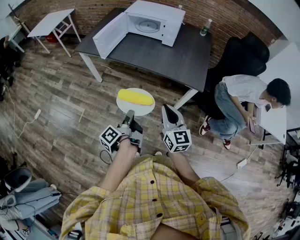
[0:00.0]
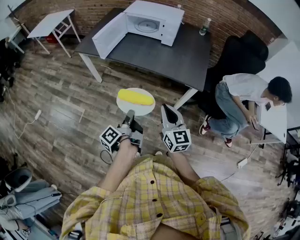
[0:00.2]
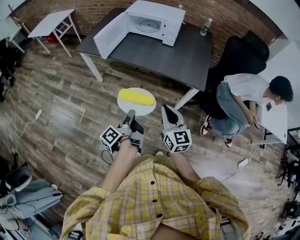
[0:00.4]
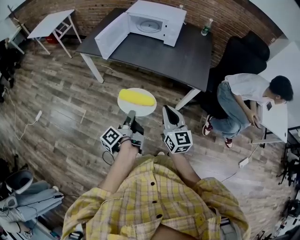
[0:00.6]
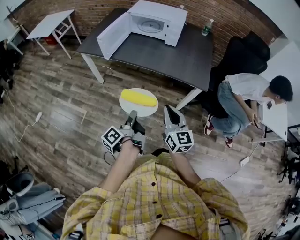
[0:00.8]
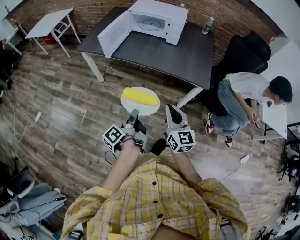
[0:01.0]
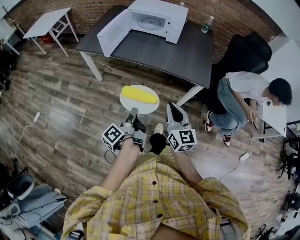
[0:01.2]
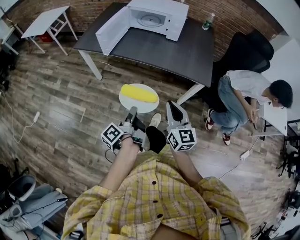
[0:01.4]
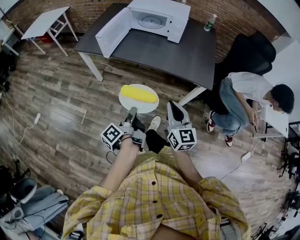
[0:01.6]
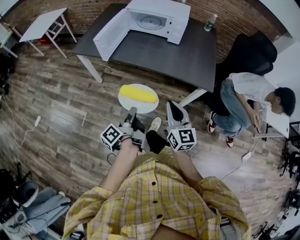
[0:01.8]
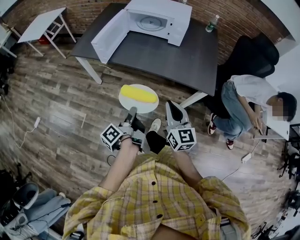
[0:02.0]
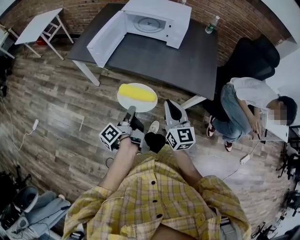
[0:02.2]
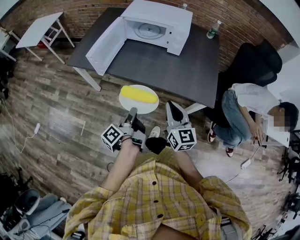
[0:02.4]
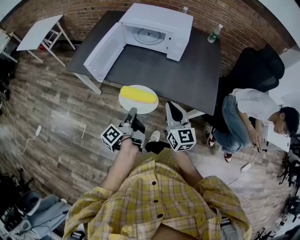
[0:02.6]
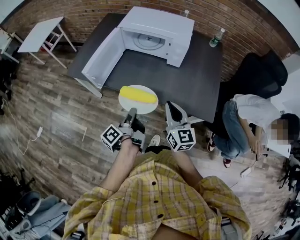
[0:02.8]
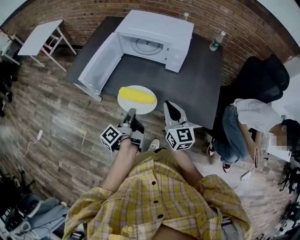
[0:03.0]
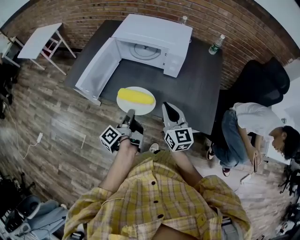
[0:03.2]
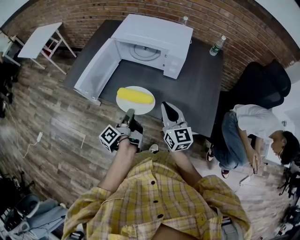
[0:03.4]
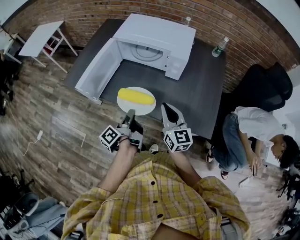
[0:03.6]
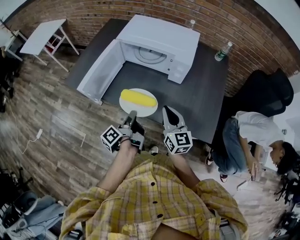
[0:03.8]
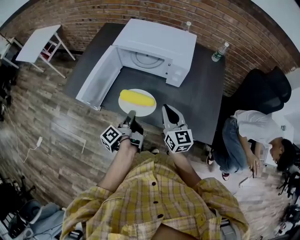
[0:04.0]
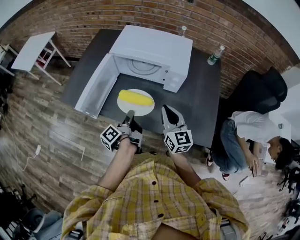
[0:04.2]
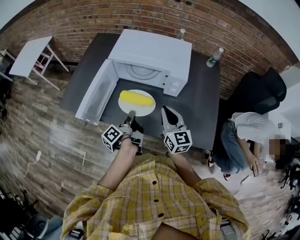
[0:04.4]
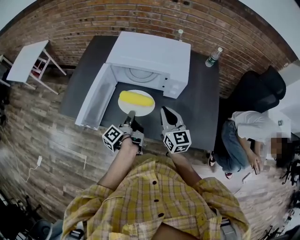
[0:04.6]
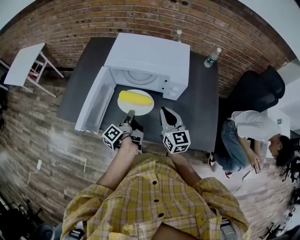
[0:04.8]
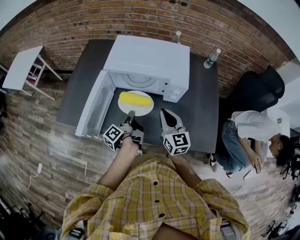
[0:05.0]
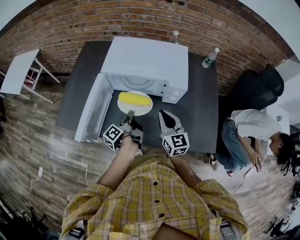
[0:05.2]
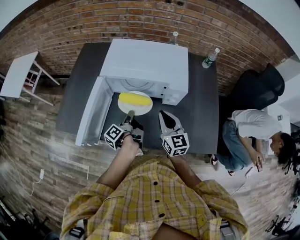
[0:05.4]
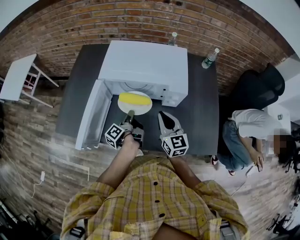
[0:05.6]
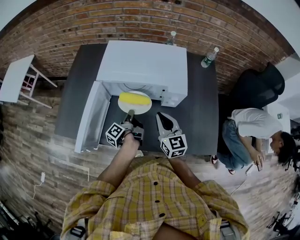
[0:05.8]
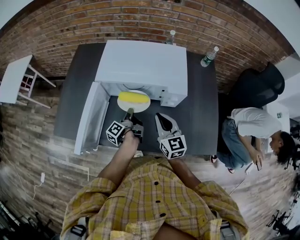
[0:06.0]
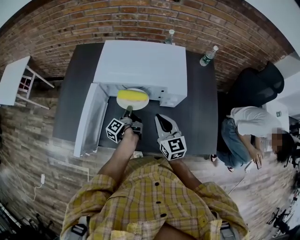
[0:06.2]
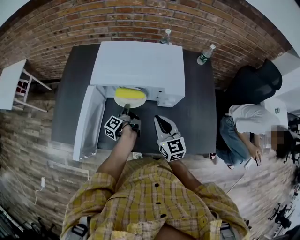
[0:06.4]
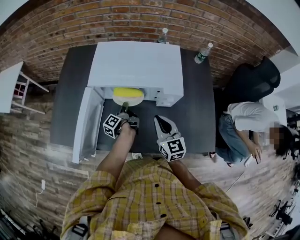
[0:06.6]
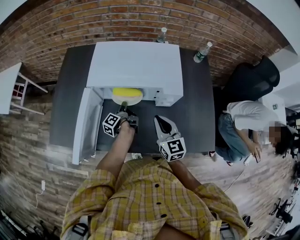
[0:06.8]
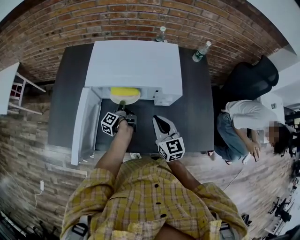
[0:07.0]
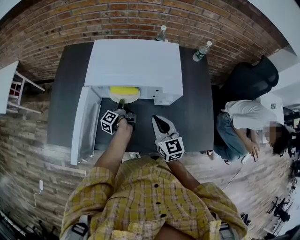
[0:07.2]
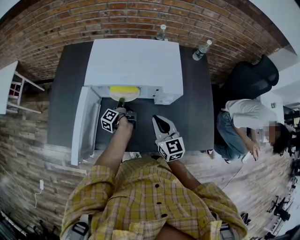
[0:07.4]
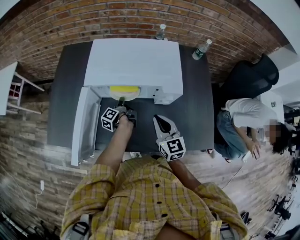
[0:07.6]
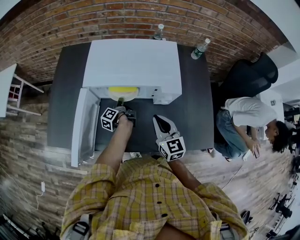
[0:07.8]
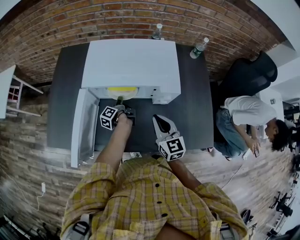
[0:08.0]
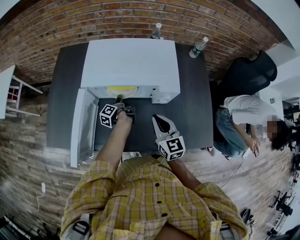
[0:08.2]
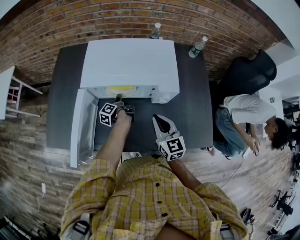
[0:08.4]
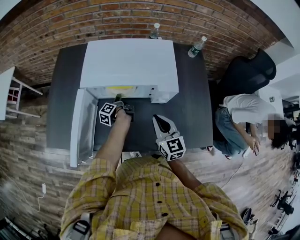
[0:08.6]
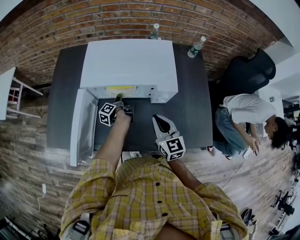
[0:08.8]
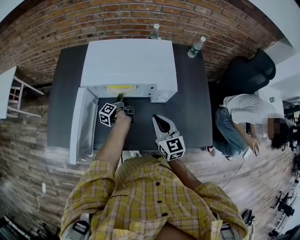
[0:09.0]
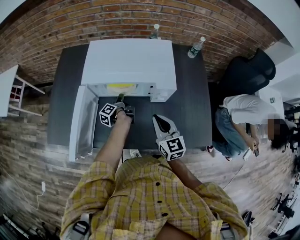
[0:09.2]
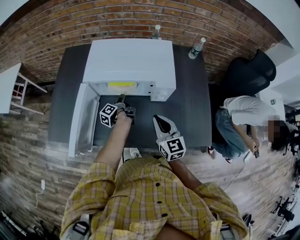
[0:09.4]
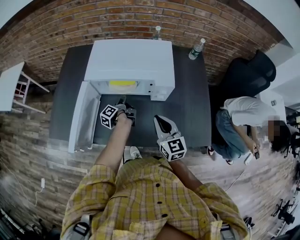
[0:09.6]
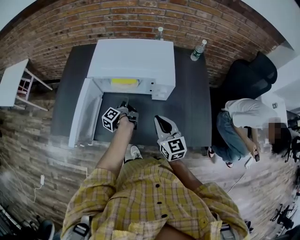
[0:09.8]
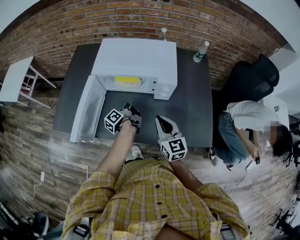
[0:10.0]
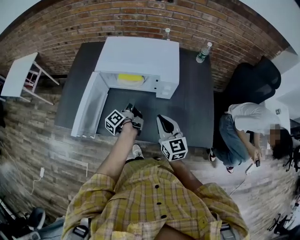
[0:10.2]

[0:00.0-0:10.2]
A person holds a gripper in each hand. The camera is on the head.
0.0 to 1.4 s: The right gripper shifts by approximately 5 cm.
1.4 to 3.0 s: The right gripper moves about 30 cm.
3.0 to 4.4 s: The right gripper ends up some 15 cm from where it was.
4.4 to 5.8 s: The right gripper changes place by roughly 10 cm.
8.8 to 10.2 s: The right gripper ends up approximately 10 cm from where it was.

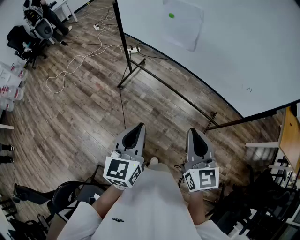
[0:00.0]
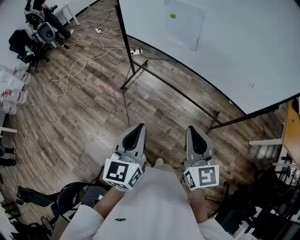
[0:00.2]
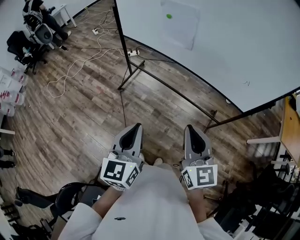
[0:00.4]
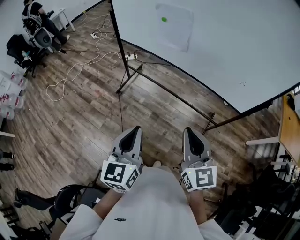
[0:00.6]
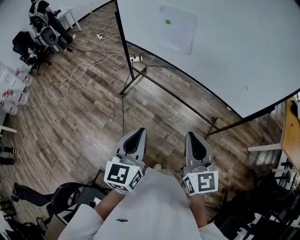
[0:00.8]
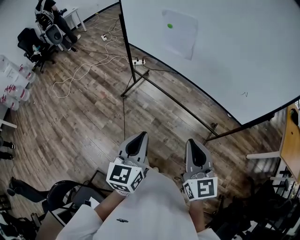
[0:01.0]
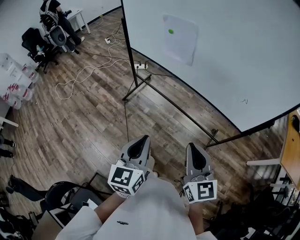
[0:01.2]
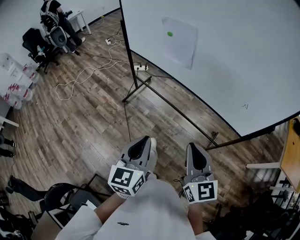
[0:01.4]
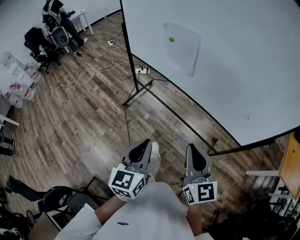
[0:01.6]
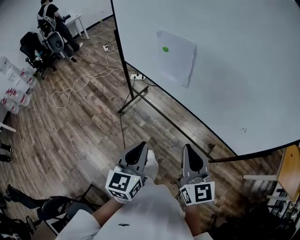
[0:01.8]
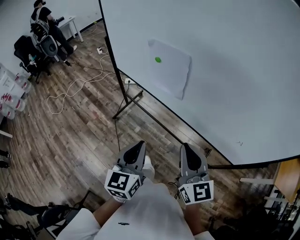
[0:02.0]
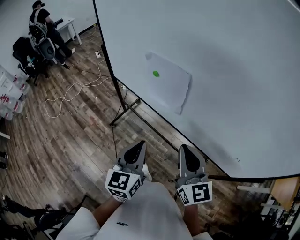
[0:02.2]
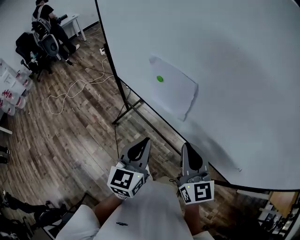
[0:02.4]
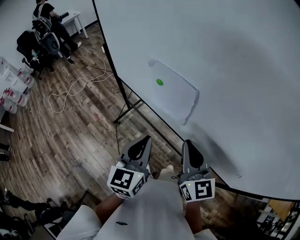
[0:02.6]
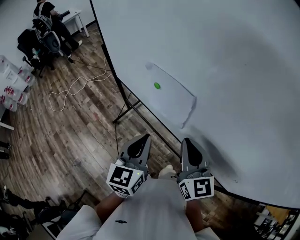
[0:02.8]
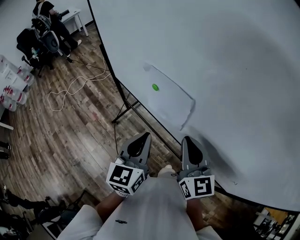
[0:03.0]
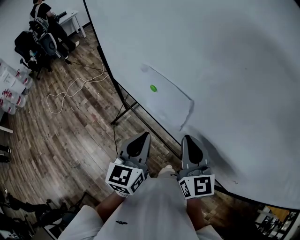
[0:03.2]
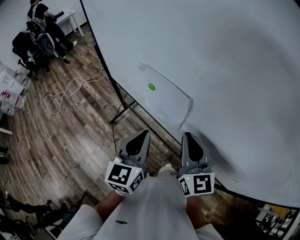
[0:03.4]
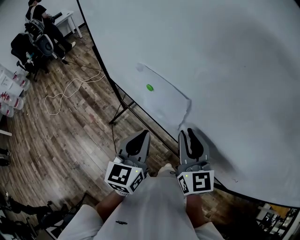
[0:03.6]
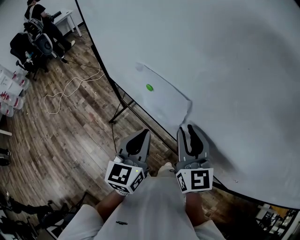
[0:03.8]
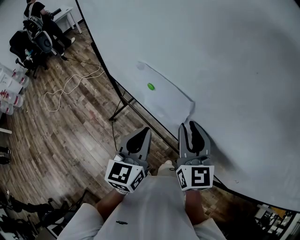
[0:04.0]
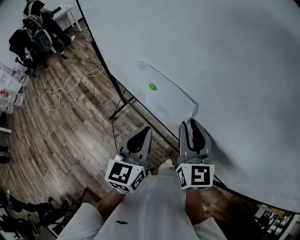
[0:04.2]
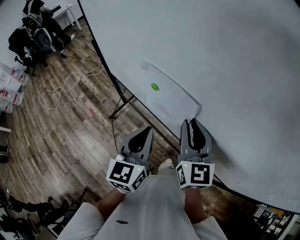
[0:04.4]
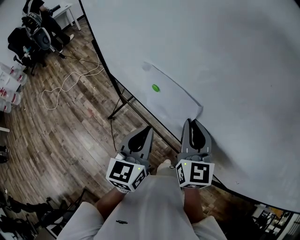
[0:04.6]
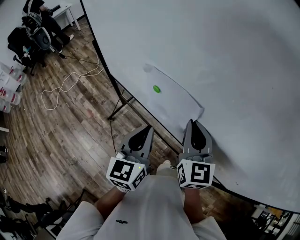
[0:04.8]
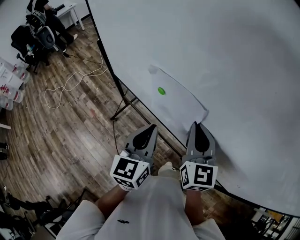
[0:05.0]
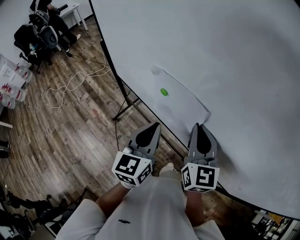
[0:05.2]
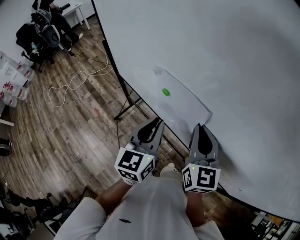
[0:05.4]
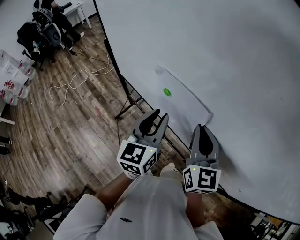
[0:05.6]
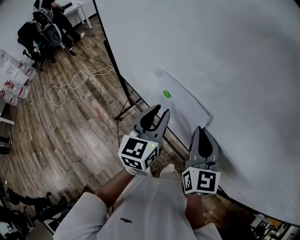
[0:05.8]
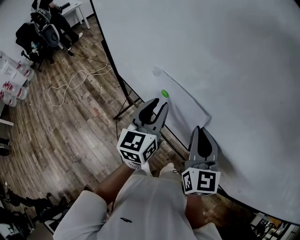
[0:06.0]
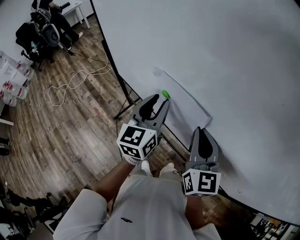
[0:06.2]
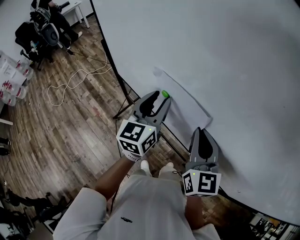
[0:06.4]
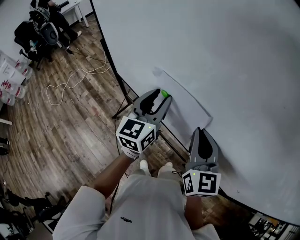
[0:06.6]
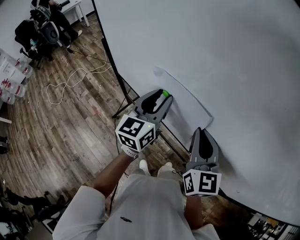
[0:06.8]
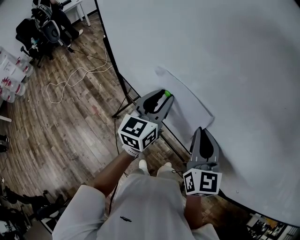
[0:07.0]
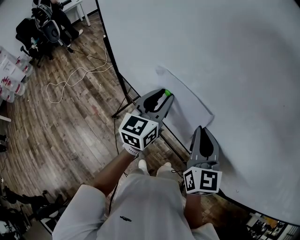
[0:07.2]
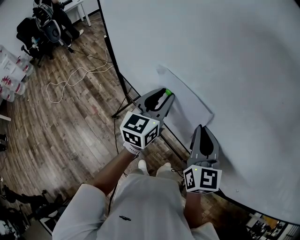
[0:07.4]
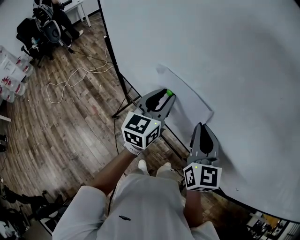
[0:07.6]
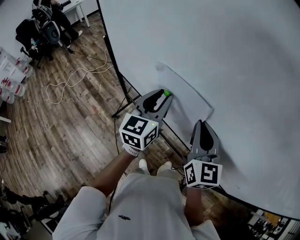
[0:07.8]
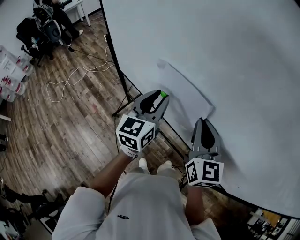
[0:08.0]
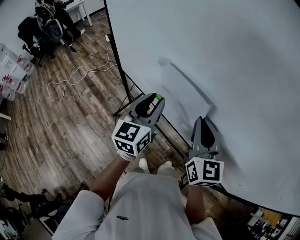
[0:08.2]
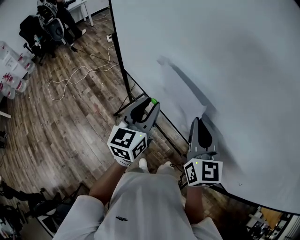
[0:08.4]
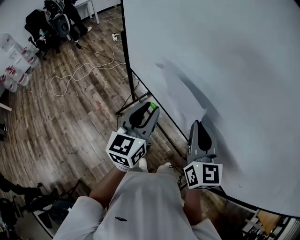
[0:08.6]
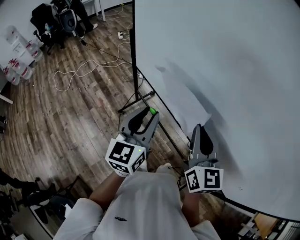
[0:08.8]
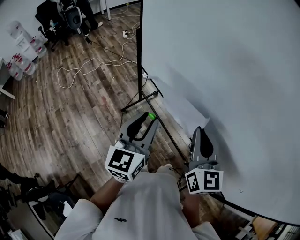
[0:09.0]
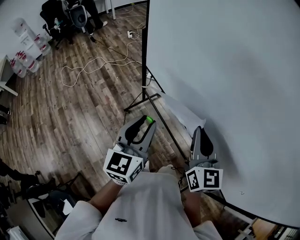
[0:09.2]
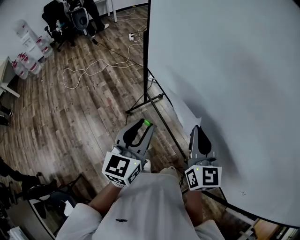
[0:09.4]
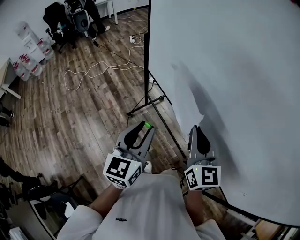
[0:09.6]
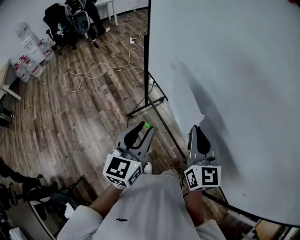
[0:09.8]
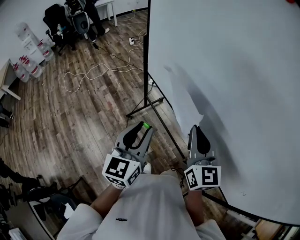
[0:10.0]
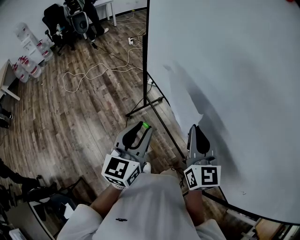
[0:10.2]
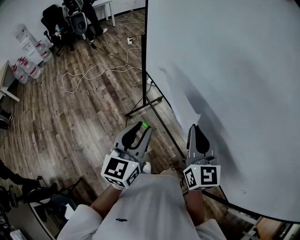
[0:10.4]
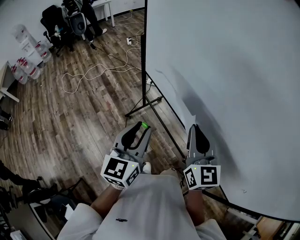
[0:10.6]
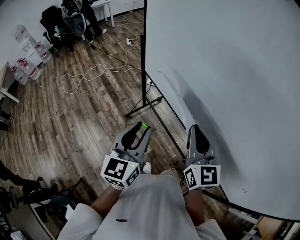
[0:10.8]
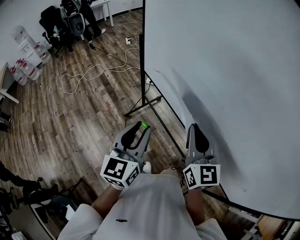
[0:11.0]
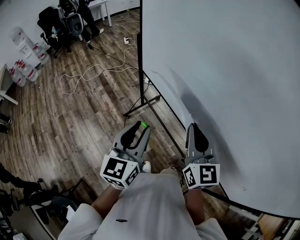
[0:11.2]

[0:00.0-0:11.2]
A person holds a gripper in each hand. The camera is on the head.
0.0 to 1.6 s: Both grippers move to the right, about 5 cm.
1.6 to 3.2 s: Both grippers move forward, about 35 cm.
3.2 to 4.8 s: The right gripper goes roughly 5 cm forward.
4.8 to 6.4 s: The left gripper shifts about 10 cm forward, and opens its fingers.
6.4 to 8.0 s: There are only small adjustments of the grippers.
8.0 to 9.6 s: The left gripper heads backward and to the left, covering some 20 cm. The right gripper is displaced to the left and backward by about 10 cm.
9.6 to 11.2 s: There are only small adjustments of the grippers.

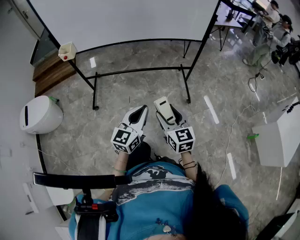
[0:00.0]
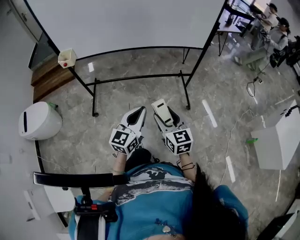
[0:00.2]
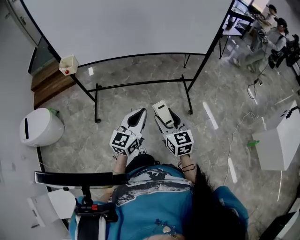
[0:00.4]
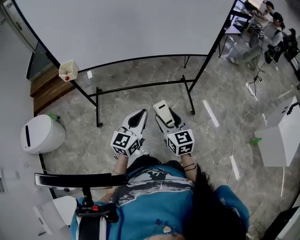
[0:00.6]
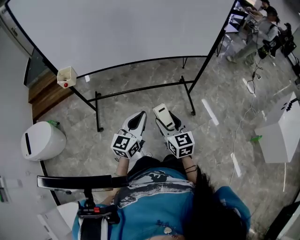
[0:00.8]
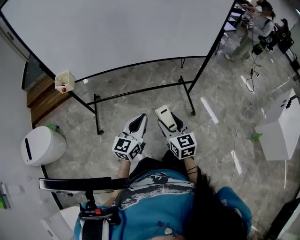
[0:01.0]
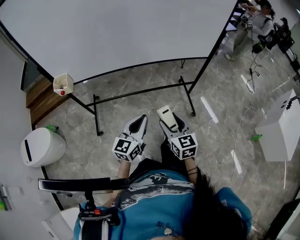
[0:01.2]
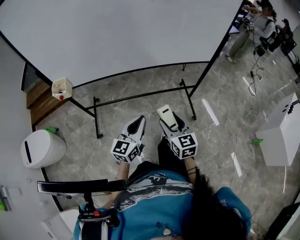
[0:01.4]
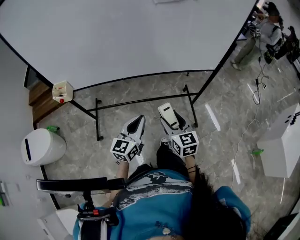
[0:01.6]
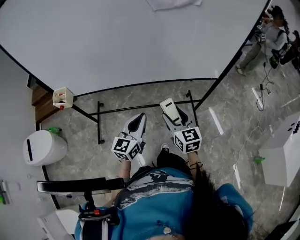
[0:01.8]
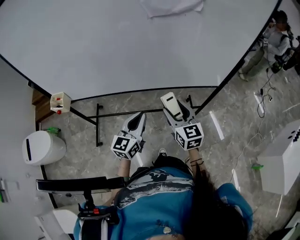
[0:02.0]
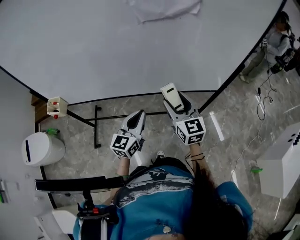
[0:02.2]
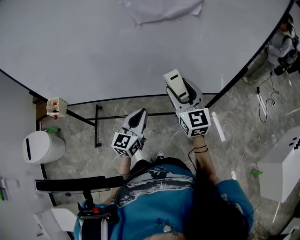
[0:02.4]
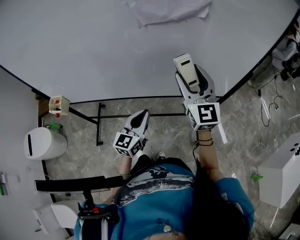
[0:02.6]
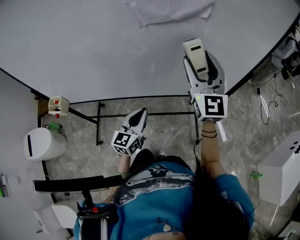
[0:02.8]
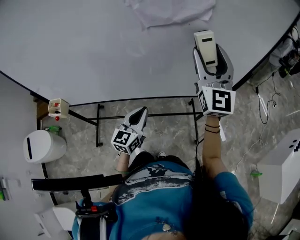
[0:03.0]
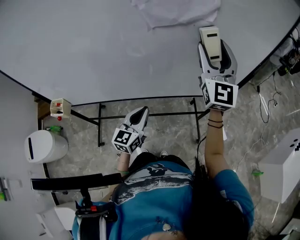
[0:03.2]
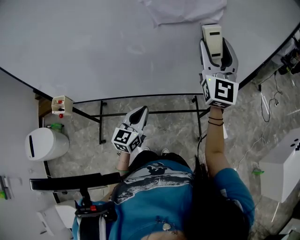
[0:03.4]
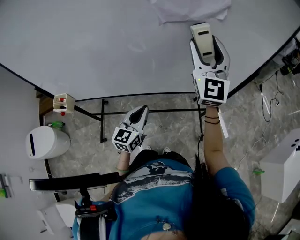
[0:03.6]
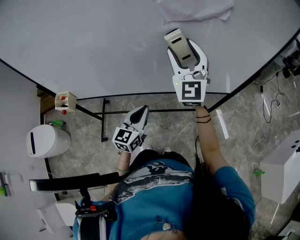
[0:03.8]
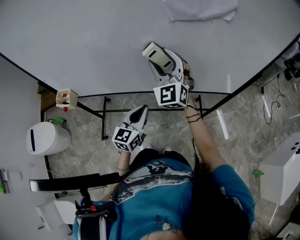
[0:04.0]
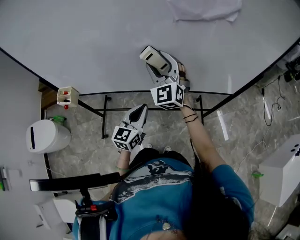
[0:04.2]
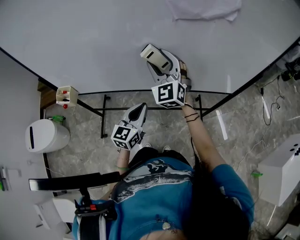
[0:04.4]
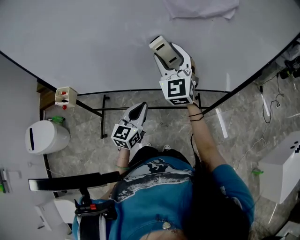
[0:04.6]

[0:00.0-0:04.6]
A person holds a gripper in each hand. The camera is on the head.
0.0 to 1.6 s: The right gripper goes about 30 cm forward. The left gripper goes roughly 30 cm forward and to the left.
1.6 to 3.0 s: The right gripper is displaced forward and upward by about 40 cm, and tilts its fingers approximately 40 degrees upward. Meanwhile the left gripper goes roughly 20 cm forward.
3.0 to 4.6 s: The right gripper heads to the left and downward, covering roughly 20 cm, and rotates about 20 degrees; the left gripper is displaced to the left by about 5 cm.
